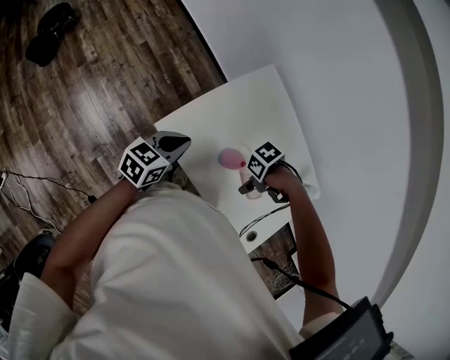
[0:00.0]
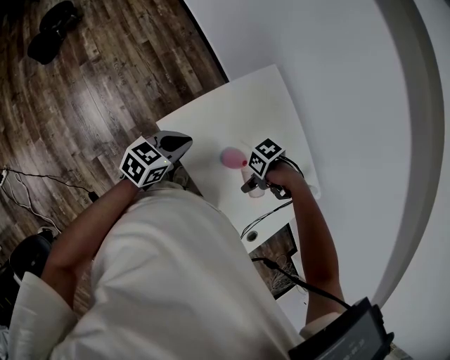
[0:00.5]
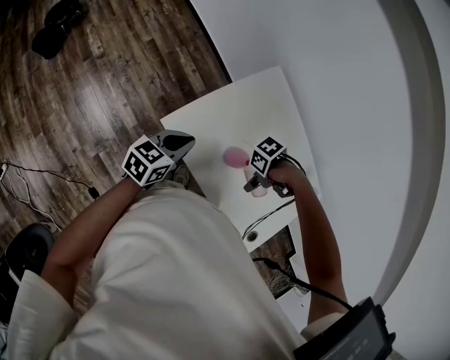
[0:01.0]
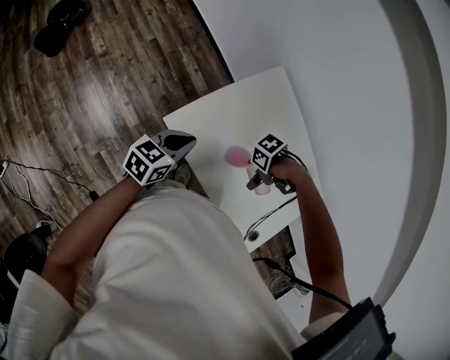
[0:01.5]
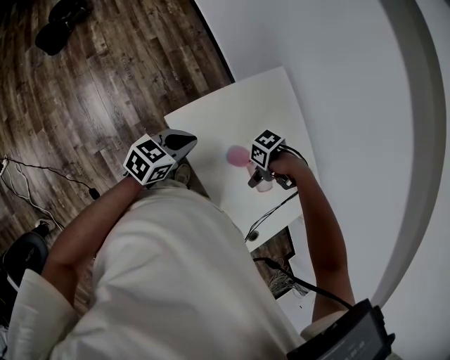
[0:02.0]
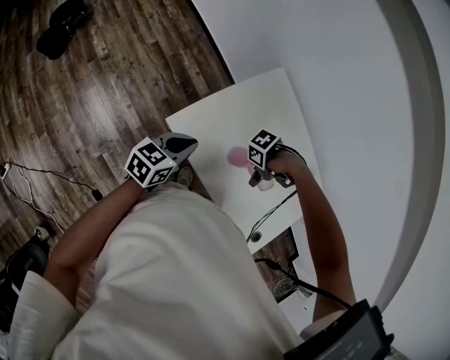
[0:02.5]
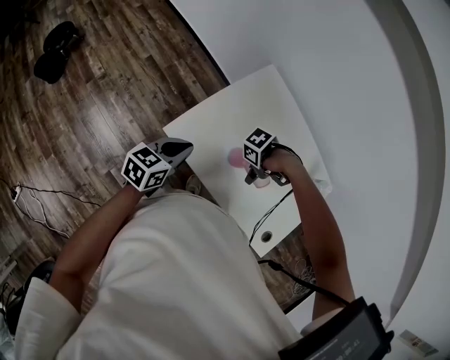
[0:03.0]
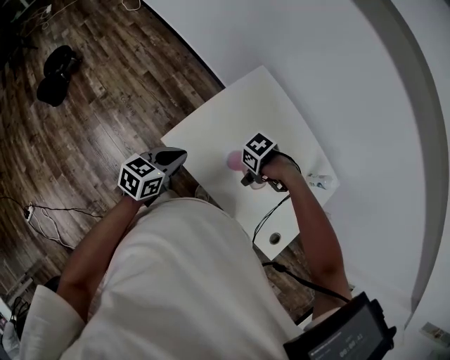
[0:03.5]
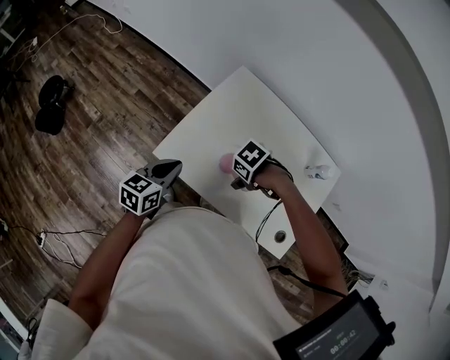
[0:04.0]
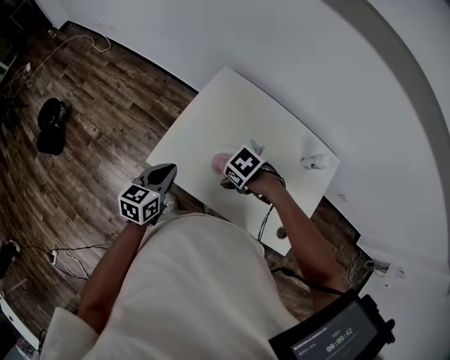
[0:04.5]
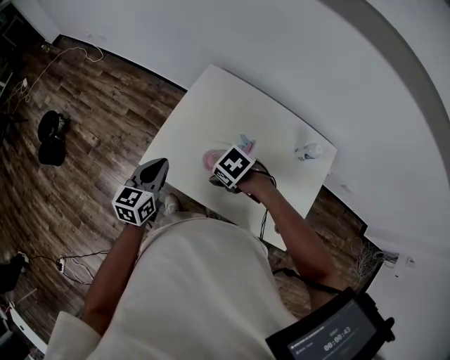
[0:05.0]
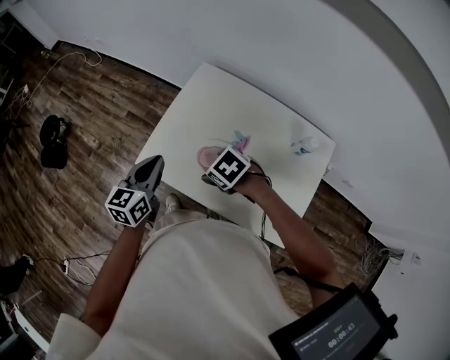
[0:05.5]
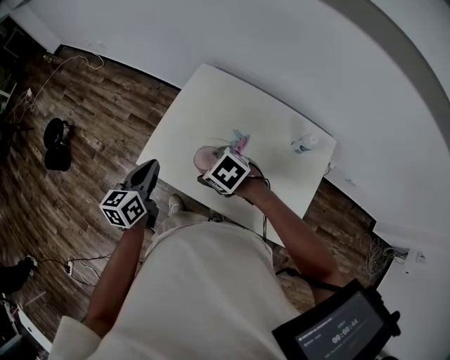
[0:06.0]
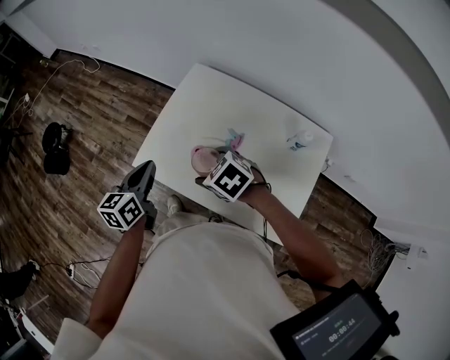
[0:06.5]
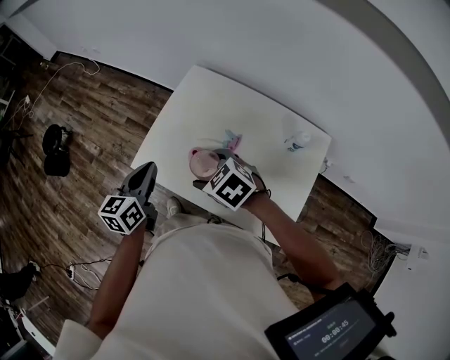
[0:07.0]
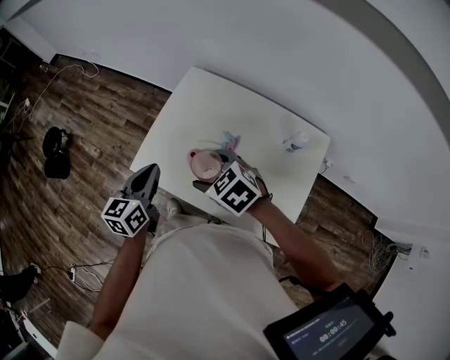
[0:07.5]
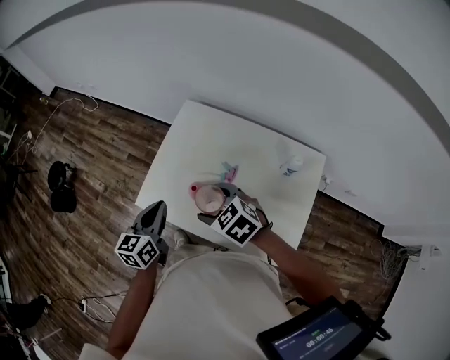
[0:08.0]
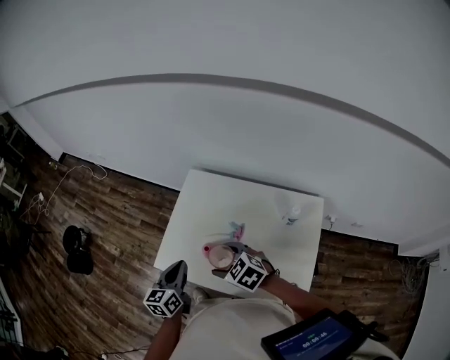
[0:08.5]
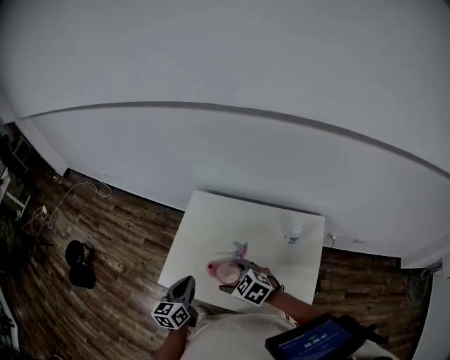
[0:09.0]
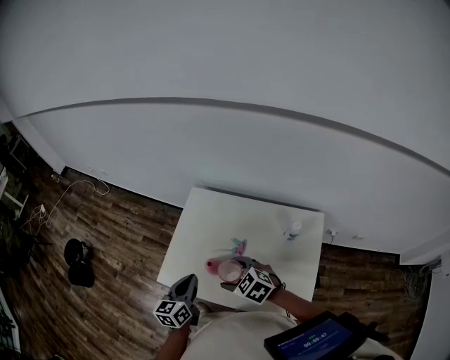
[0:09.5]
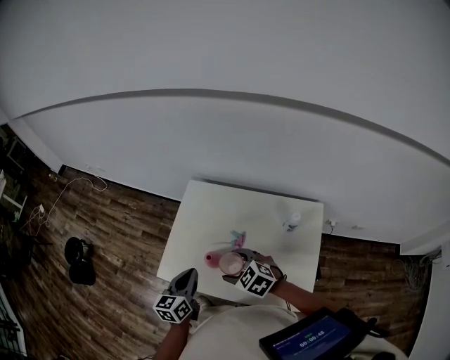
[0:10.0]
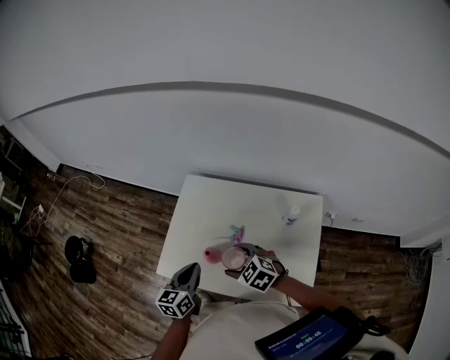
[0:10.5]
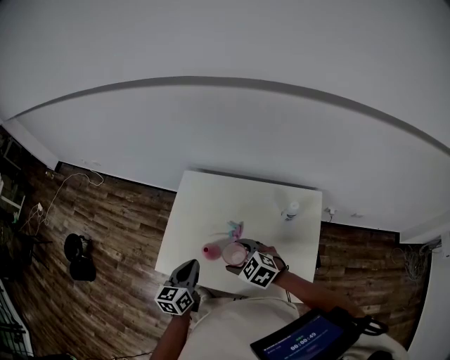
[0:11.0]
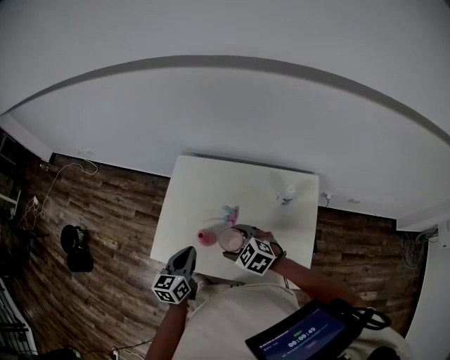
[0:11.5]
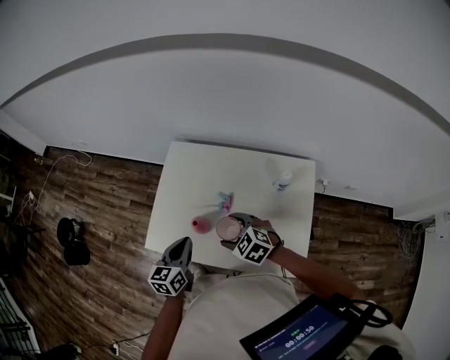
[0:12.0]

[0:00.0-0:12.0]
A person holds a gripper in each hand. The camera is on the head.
0:00.0 to 0:02.0: The grippers make only small movements.
0:02.0 to 0:04.0: The right gripper turns by some 30 degrees; the left gripper changes place by about 5 cm.
0:04.0 to 0:06.0: Both grippers move upward, about 10 cm. The right gripper turns by some 40 degrees.
0:06.0 to 0:08.0: The left gripper moves to the right, approximately 5 cm. Meanwhile the right gripper heads upward, covering about 5 cm.
0:08.0 to 0:10.0: The grippers move only a little.
0:10.0 to 0:12.0: The right gripper heads downward, covering some 5 cm.

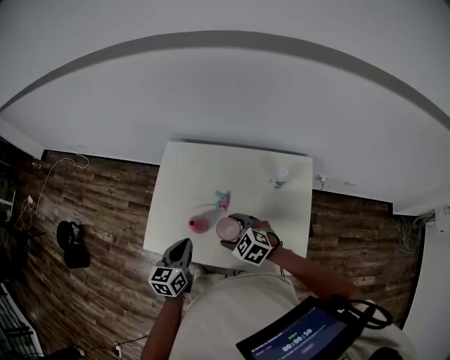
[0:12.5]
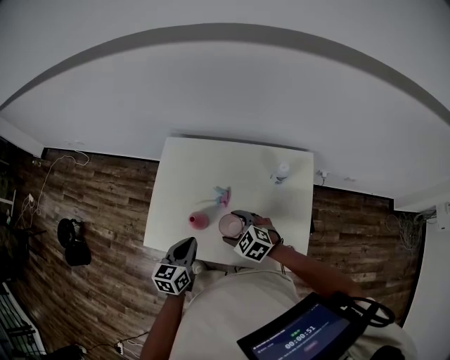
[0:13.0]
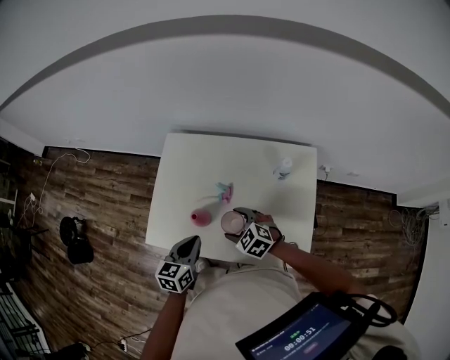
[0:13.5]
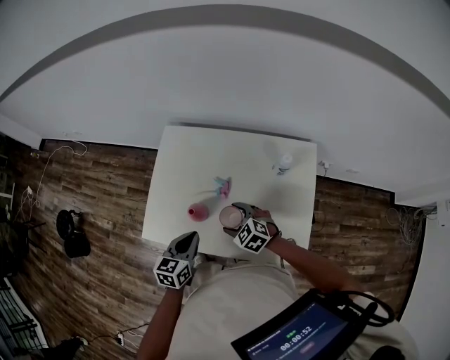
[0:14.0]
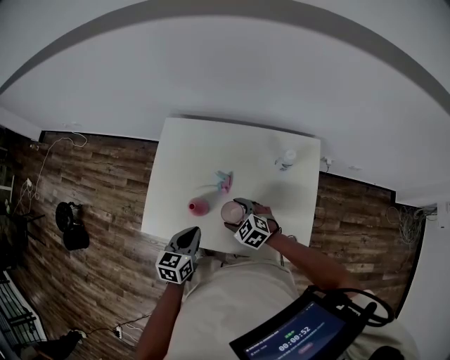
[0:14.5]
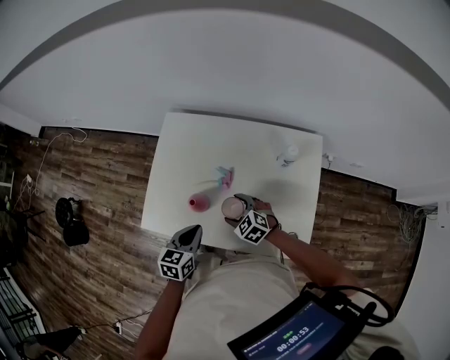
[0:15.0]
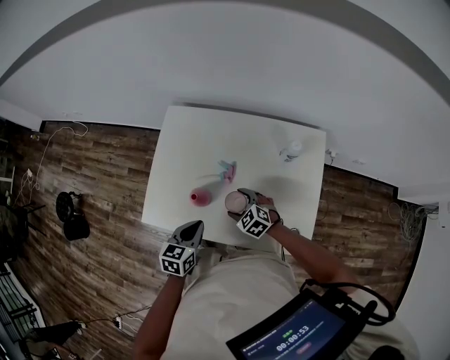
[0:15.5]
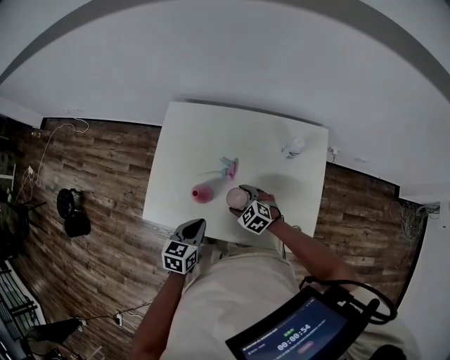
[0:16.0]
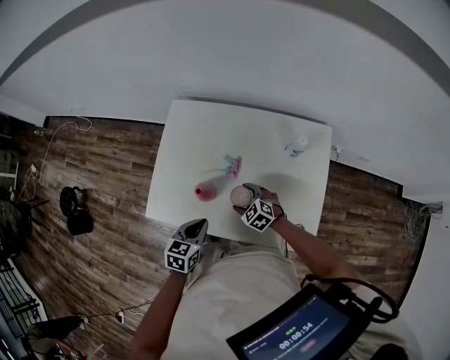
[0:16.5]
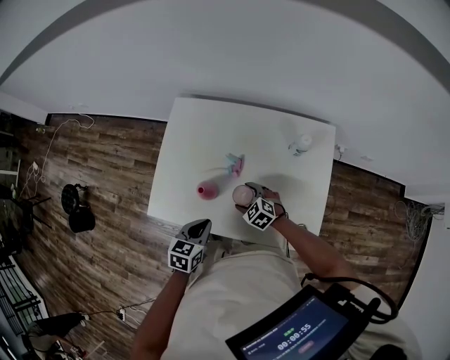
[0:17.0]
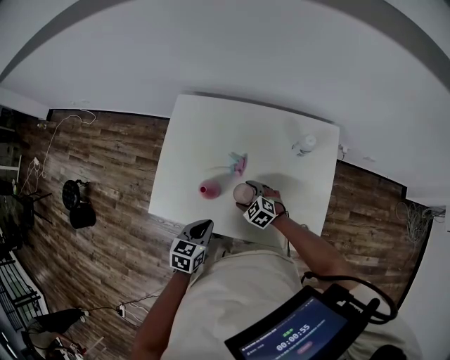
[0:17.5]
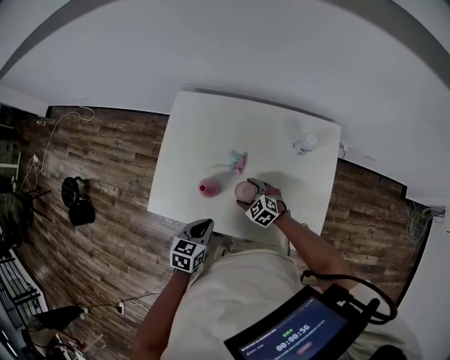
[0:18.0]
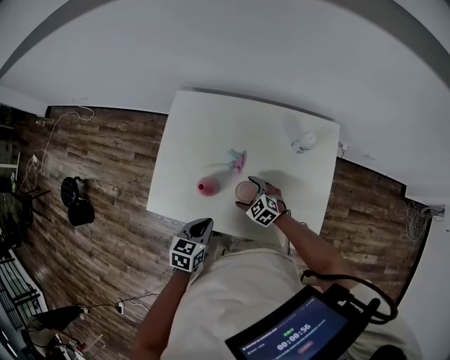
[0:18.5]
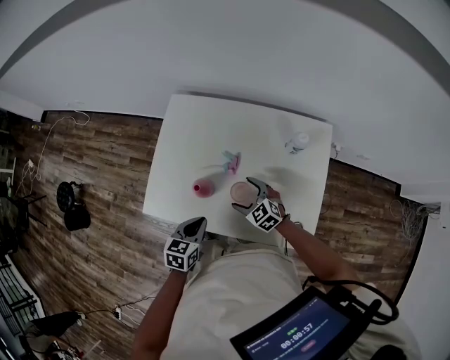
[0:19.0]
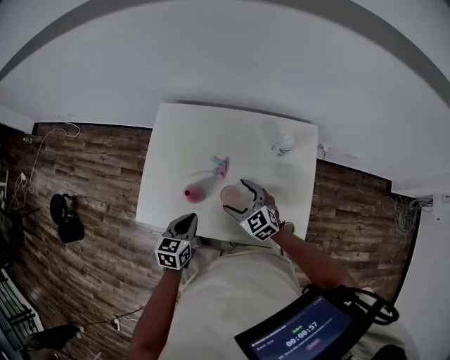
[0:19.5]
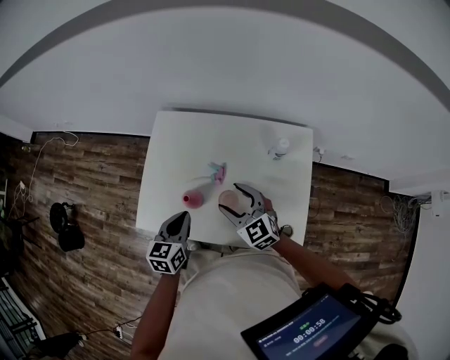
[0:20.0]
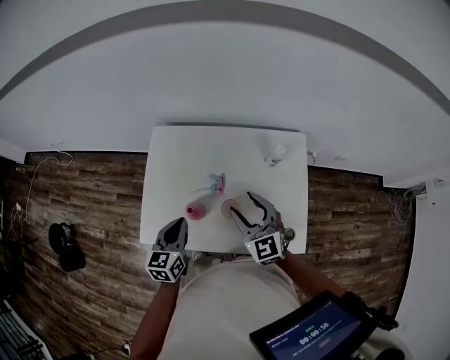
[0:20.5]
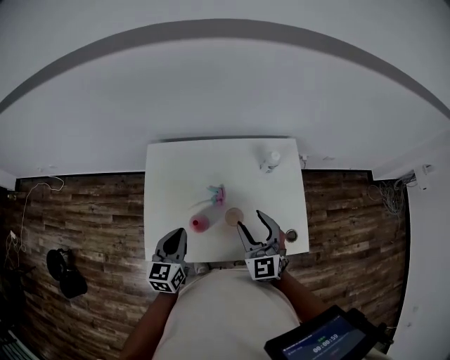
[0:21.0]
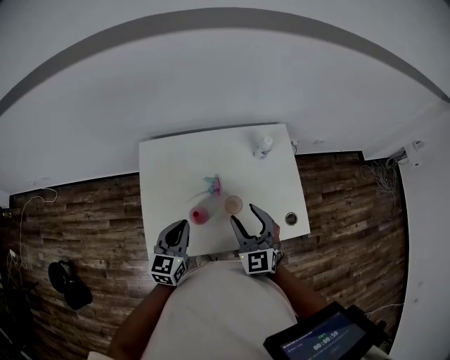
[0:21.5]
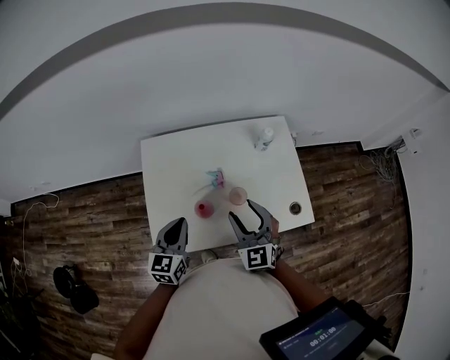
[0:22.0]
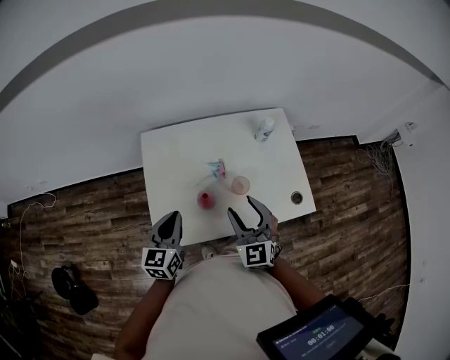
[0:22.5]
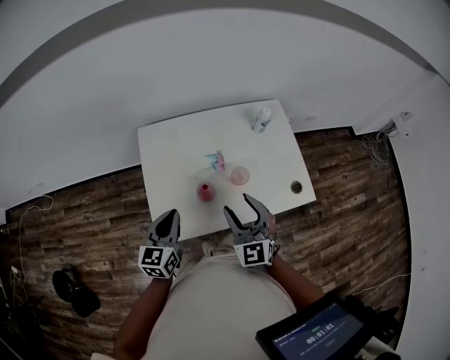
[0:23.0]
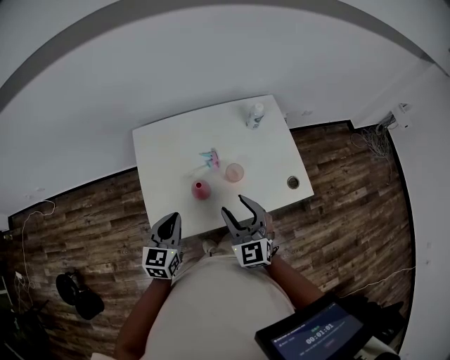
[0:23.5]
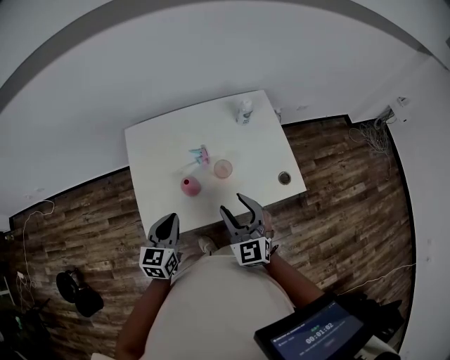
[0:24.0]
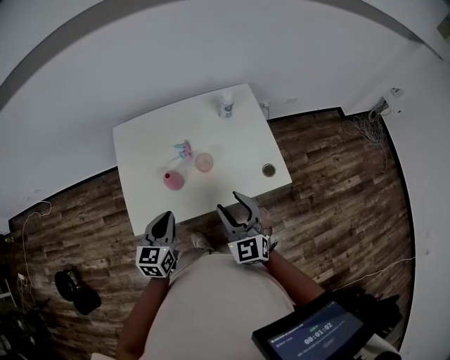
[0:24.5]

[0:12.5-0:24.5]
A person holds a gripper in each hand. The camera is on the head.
0:12.5 to 0:14.5: The right gripper moves downward, approximately 10 cm; the left gripper is displaced downward by some 5 cm.
0:14.5 to 0:16.5: The right gripper shifts roughly 5 cm downward.
0:16.5 to 0:18.5: There are only small adjustments of the grippers.
0:18.5 to 0:20.5: The left gripper moves upward and forward, some 15 cm, and turns by about 20 degrees. Meanwhile the right gripper heads upward, covering roughly 30 cm, rotates about 40 degrees, and closes its fingers.
0:20.5 to 0:22.5: The right gripper travels backward and to the left by about 15 cm, and changes its angle by some 30 degrees, while the left gripper travels to the left by some 10 cm.
0:22.5 to 0:24.5: Both grippers move to the right and backward, some 15 cm.

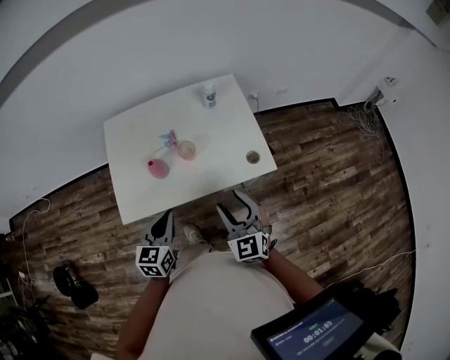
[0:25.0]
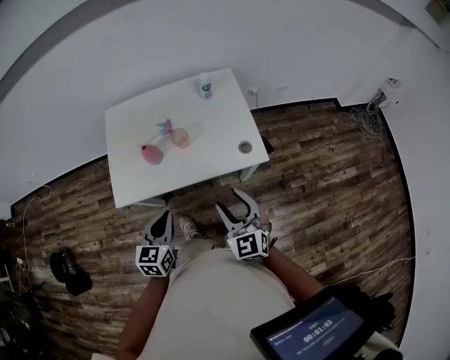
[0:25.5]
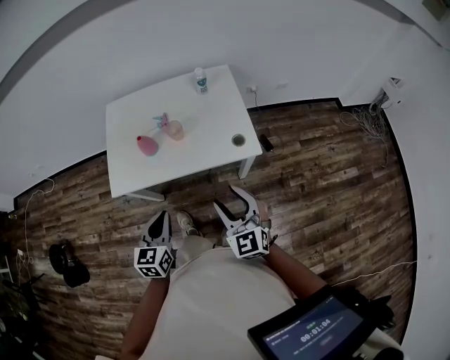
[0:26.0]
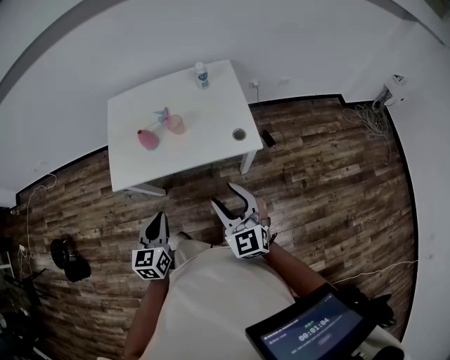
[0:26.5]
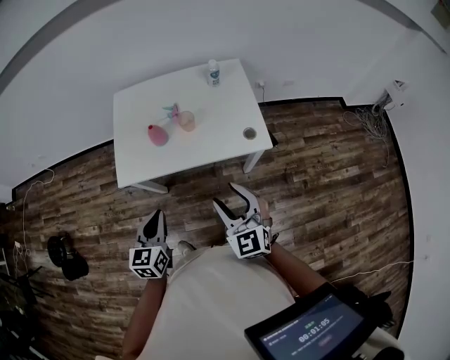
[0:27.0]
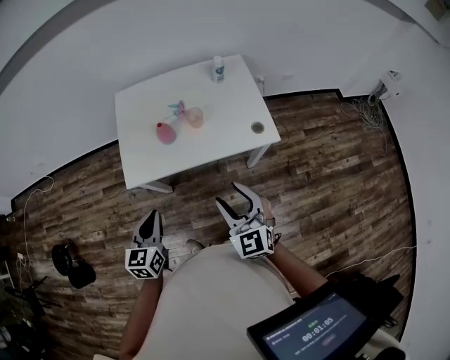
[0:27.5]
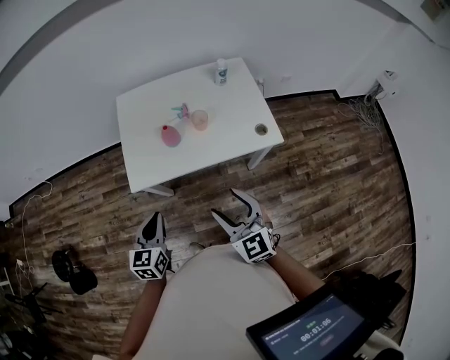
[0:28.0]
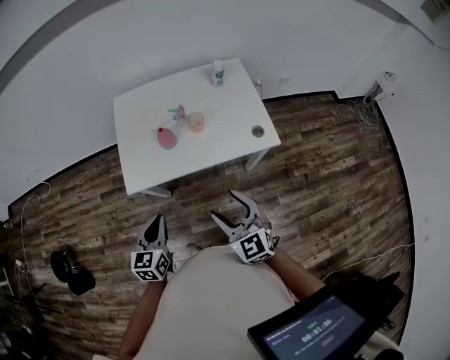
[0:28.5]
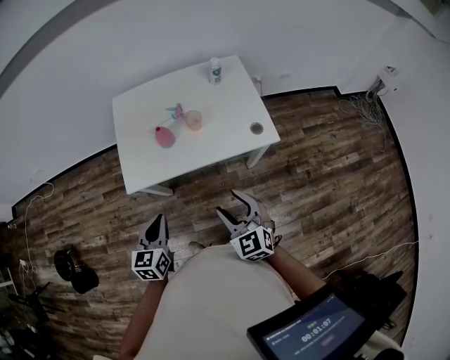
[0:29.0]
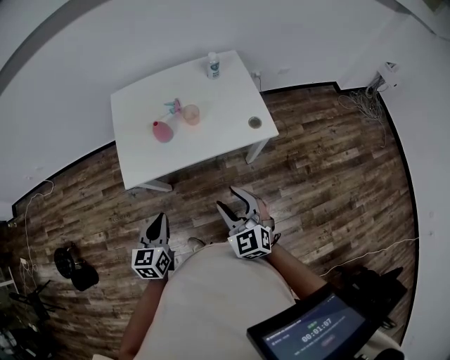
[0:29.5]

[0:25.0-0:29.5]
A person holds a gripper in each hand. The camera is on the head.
0:25.0 to 0:27.0: Both grippers move backward, some 15 cm.
0:27.0 to 0:29.5: Both grippers travel together to the left, about 5 cm.
